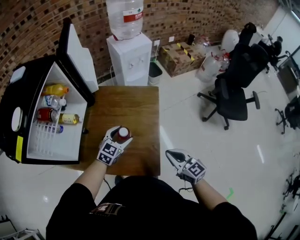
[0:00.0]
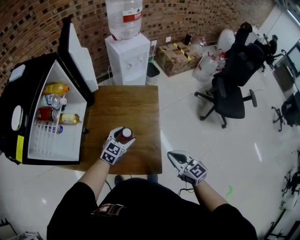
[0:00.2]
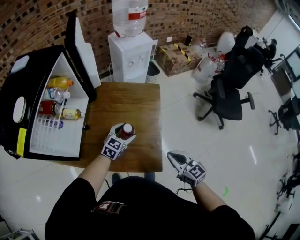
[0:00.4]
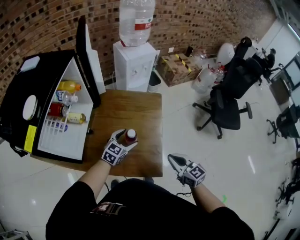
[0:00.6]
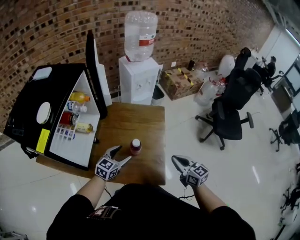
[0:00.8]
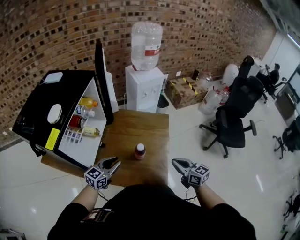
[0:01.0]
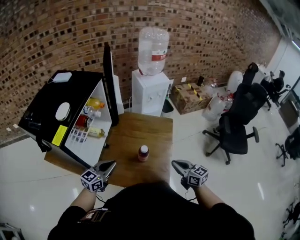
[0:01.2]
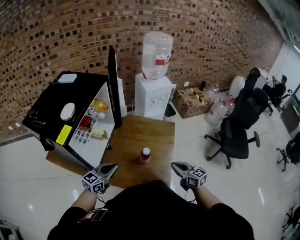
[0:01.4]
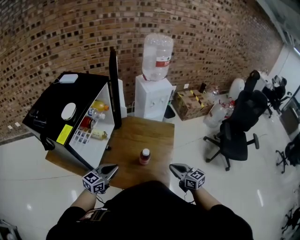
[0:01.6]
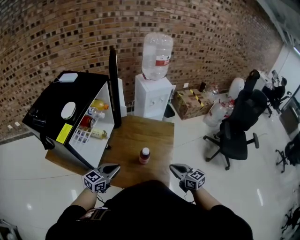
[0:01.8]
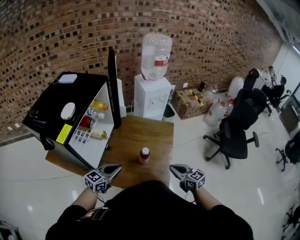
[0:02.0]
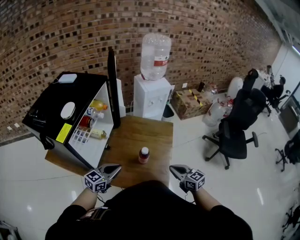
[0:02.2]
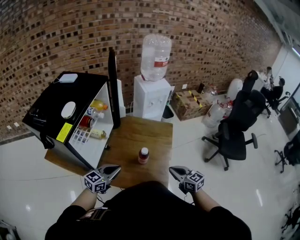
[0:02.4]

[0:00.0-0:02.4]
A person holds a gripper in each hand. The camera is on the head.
0:00.0 to 0:01.2: The left gripper shifts roughly 25 cm to the left, backward and upward, changes its angle by about 30 degrees, and closes. The right gripper is displaced to the left by approximately 5 cm.
0:01.2 to 0:02.4: There are only small adjustments of the grippers.

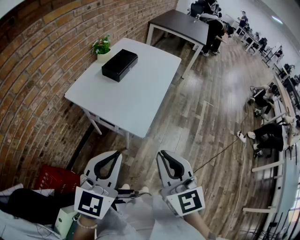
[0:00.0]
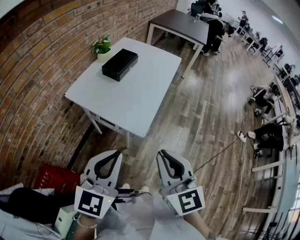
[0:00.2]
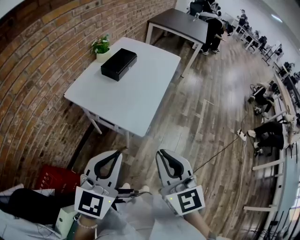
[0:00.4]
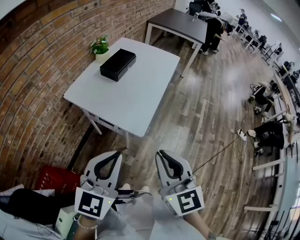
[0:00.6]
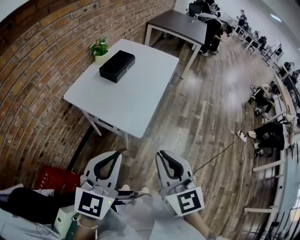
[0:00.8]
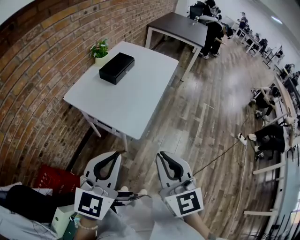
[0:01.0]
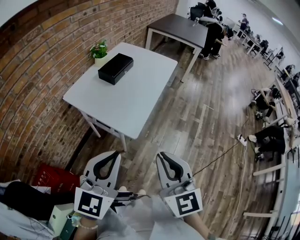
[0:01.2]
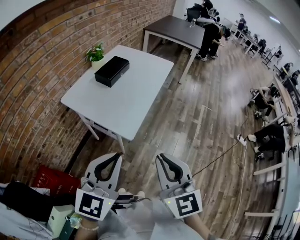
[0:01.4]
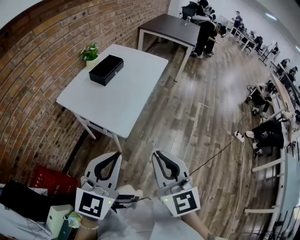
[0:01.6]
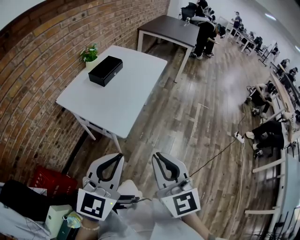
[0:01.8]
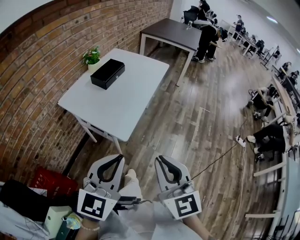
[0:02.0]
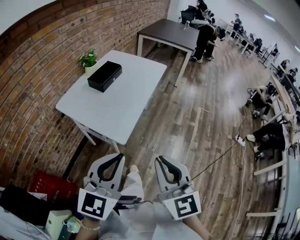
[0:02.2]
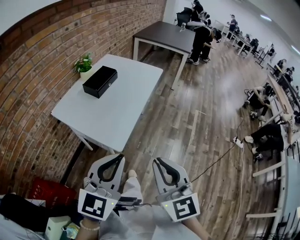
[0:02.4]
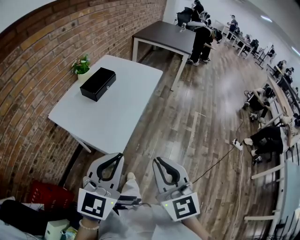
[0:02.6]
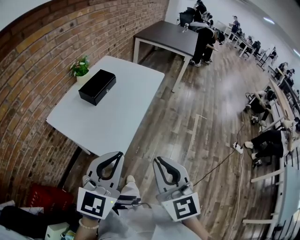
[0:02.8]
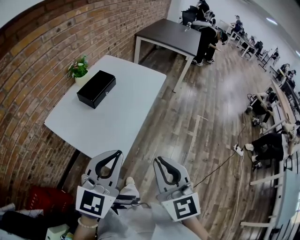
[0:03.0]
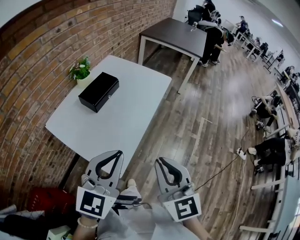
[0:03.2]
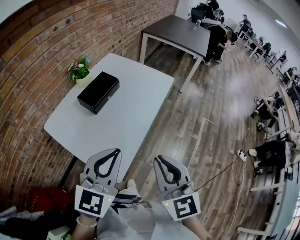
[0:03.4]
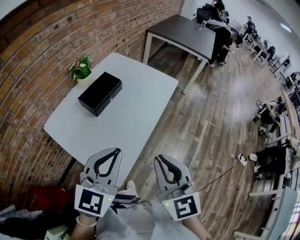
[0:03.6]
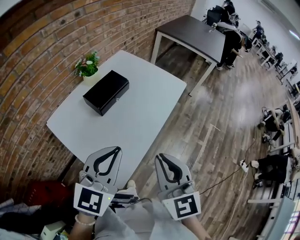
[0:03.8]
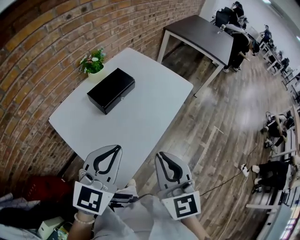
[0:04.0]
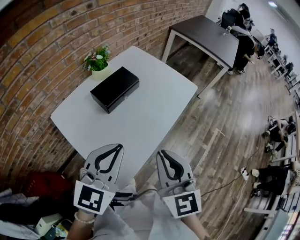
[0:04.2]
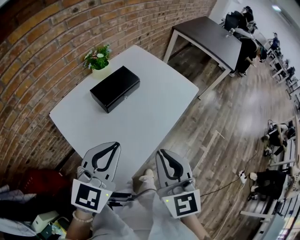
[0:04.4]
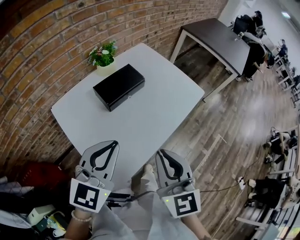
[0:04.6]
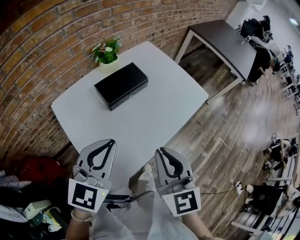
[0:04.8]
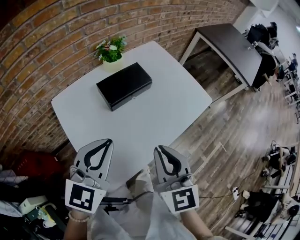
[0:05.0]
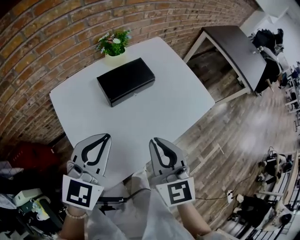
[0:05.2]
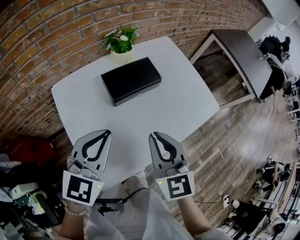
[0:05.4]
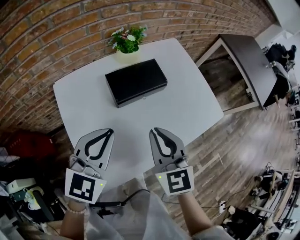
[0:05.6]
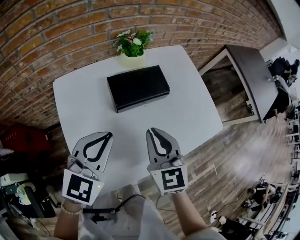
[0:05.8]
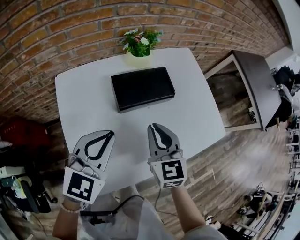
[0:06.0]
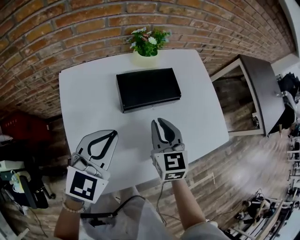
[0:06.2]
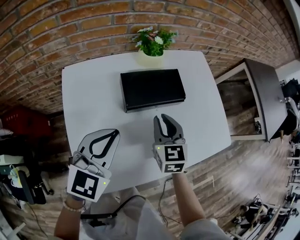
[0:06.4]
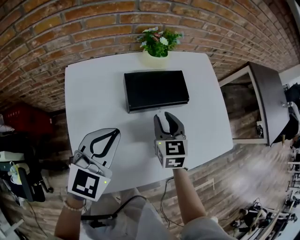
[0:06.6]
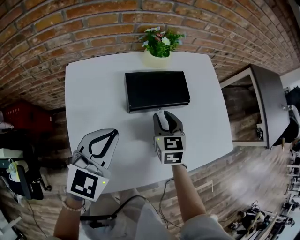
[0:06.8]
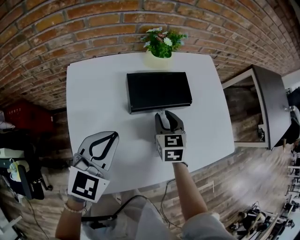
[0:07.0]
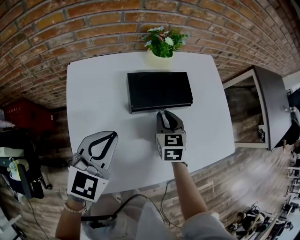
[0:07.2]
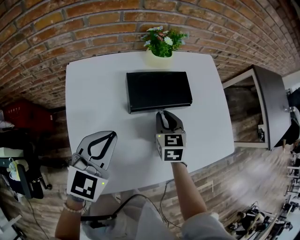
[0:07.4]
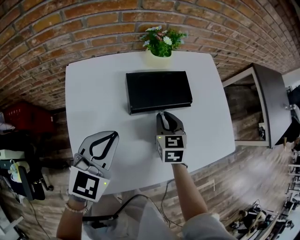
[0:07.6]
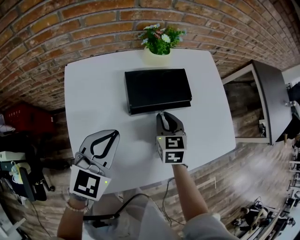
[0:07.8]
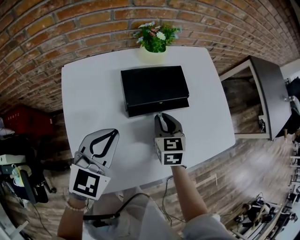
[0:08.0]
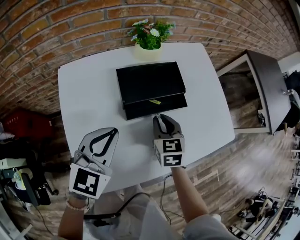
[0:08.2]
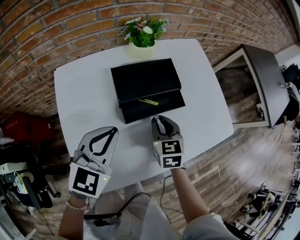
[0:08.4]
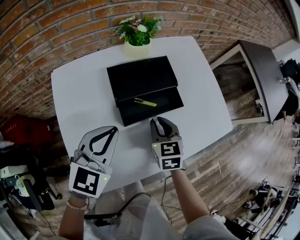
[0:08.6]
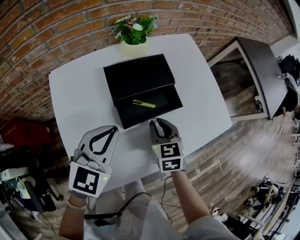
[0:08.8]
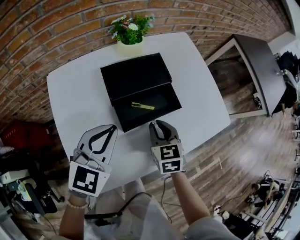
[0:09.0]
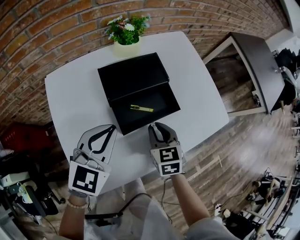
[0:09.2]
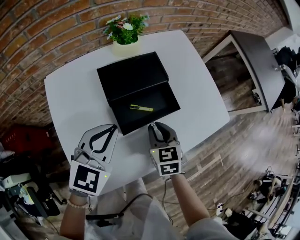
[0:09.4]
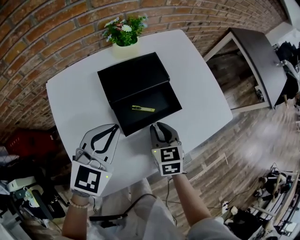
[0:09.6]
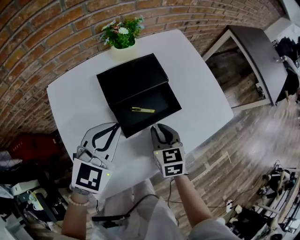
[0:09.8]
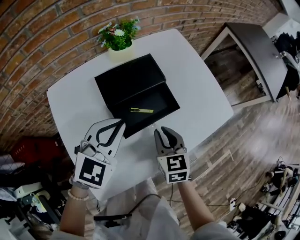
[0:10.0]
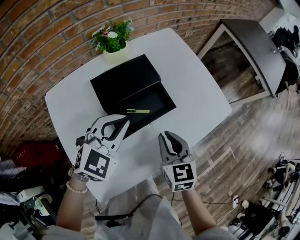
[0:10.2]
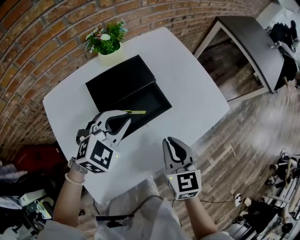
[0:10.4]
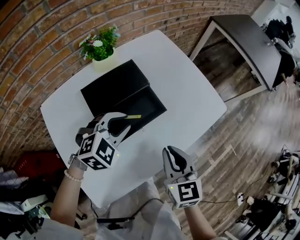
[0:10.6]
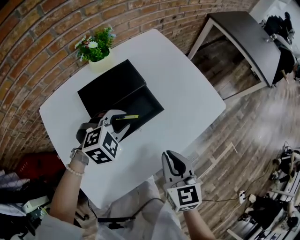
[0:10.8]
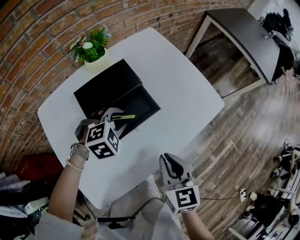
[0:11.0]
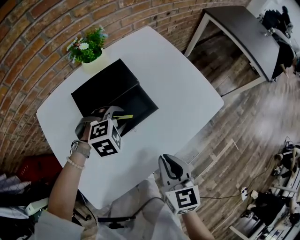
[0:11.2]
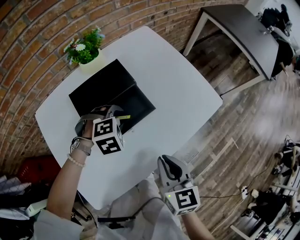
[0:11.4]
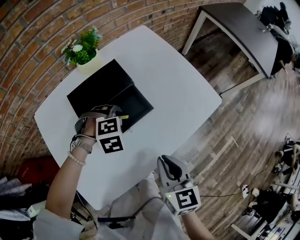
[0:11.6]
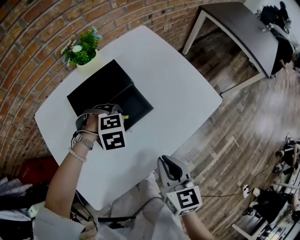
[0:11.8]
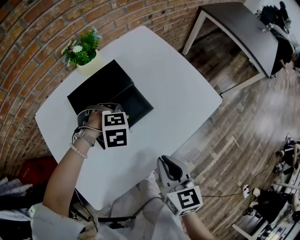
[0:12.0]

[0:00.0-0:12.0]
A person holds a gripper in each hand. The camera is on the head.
0:00.0 to 0:01.6: Both grippers travel together to the right, approximately 10 cm.
0:01.6 to 0:03.0: The grippers both shift forward by some 20 cm.
0:03.0 to 0:04.4: Both grippers travel together forward, roughly 20 cm.
0:04.4 to 0:06.0: The right gripper goes roughly 30 cm forward and downward, and changes its angle by some 30 degrees; the left gripper moves forward and downward, roughly 15 cm, and swivels some 20 degrees.
0:06.0 to 0:07.6: The right gripper shifts approximately 15 cm downward and forward; the left gripper ends up about 5 cm from where it was.
0:07.6 to 0:09.0: The left gripper heads to the right, covering roughly 5 cm; the right gripper moves backward and to the right, roughly 10 cm.
0:09.0 to 0:10.4: The left gripper heads to the right and forward, covering approximately 10 cm, and swivels about 30 degrees; the right gripper travels to the right, upward and backward by some 10 cm.
0:10.4 to 0:12.0: The right gripper changes place by roughly 5 cm, while the left gripper heads downward, covering approximately 10 cm, angles its fingers downward, by some 50 degrees, and opens its fingers.

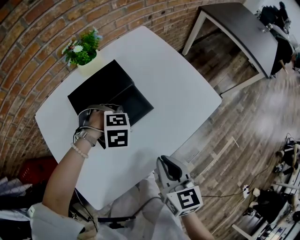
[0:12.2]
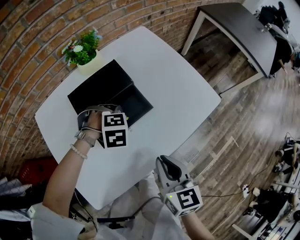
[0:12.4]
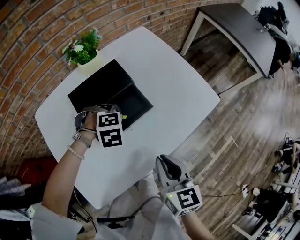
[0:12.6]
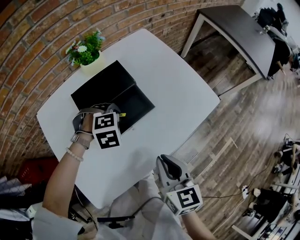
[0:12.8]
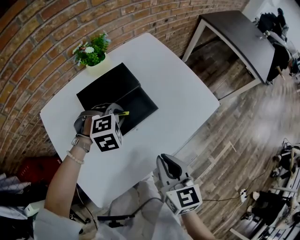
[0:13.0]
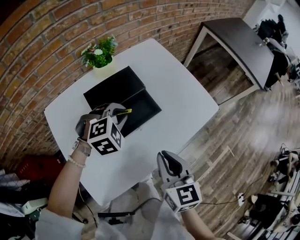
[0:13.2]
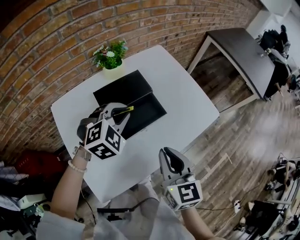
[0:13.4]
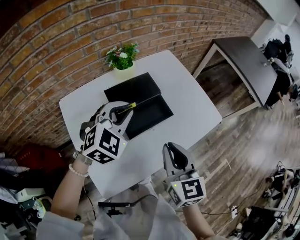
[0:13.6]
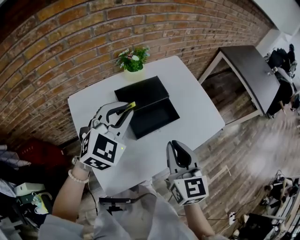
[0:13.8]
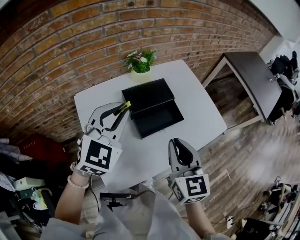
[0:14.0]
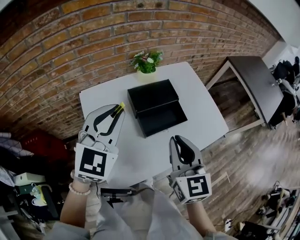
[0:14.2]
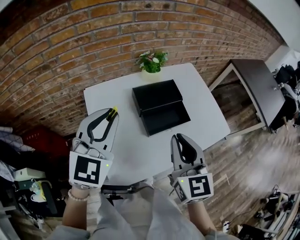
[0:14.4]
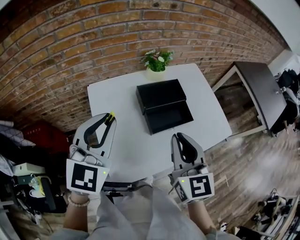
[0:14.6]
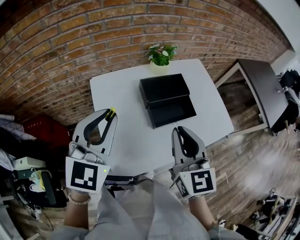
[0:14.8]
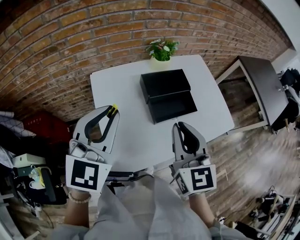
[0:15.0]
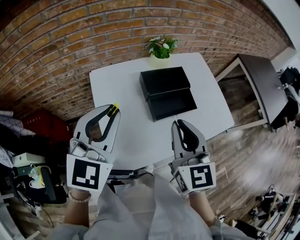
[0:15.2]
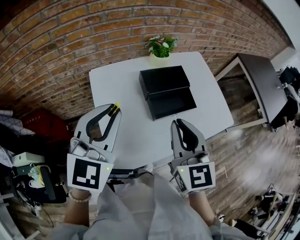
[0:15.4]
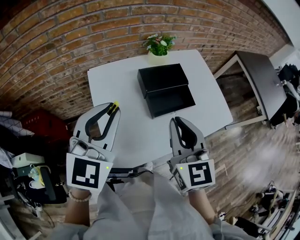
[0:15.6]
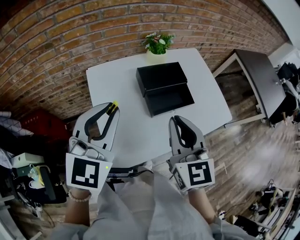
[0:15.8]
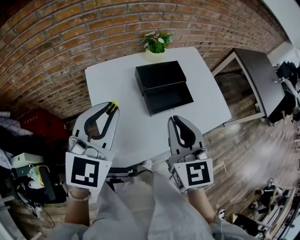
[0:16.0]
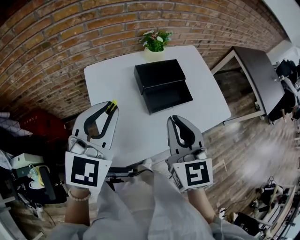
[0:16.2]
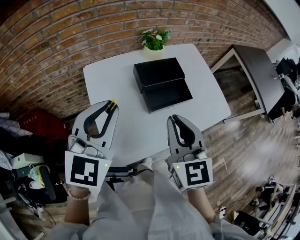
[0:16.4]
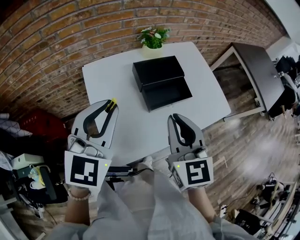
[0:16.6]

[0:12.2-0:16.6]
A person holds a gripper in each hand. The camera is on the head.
0:12.2 to 0:13.6: The left gripper is displaced upward by roughly 25 cm, and angles its fingers upward, by approximately 50 degrees. Meanwhile the right gripper heads upward, covering roughly 15 cm.
0:13.6 to 0:15.2: The right gripper is displaced to the left and upward by about 15 cm. Meanwhile the left gripper is displaced to the left, backward and upward by roughly 25 cm, and rotates approximately 30 degrees.
0:15.2 to 0:16.6: The grippers move only a little.

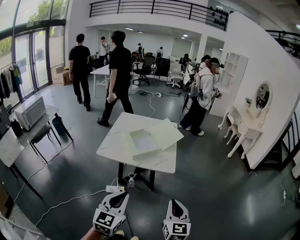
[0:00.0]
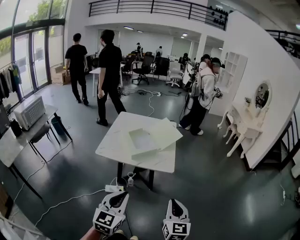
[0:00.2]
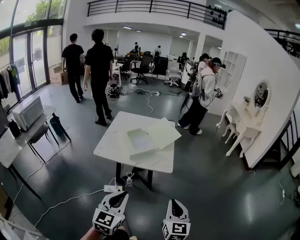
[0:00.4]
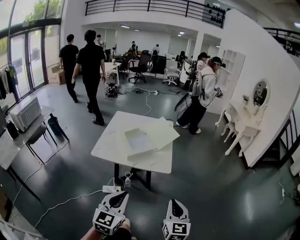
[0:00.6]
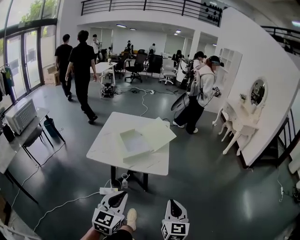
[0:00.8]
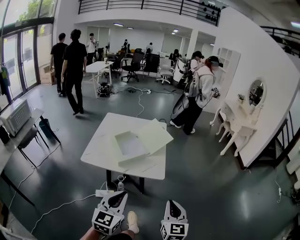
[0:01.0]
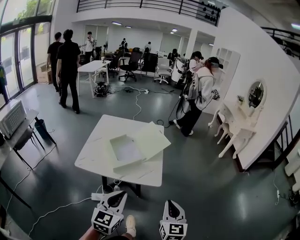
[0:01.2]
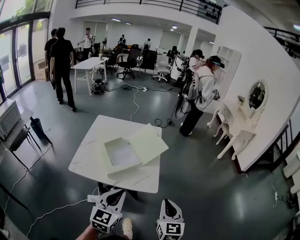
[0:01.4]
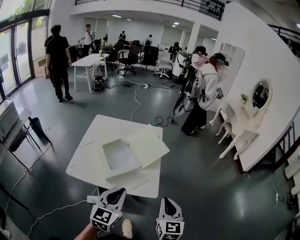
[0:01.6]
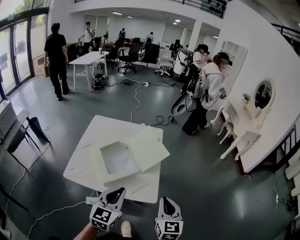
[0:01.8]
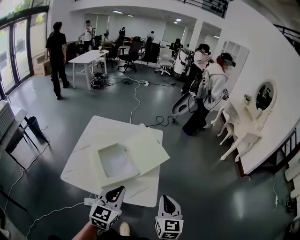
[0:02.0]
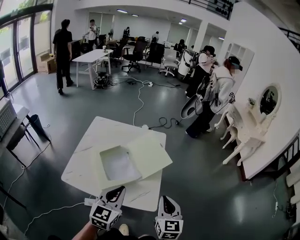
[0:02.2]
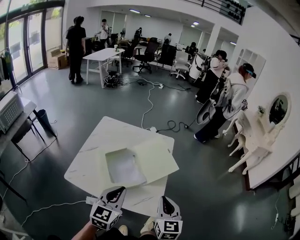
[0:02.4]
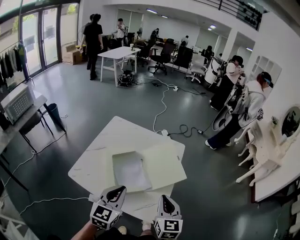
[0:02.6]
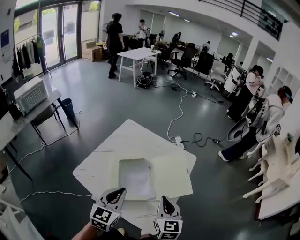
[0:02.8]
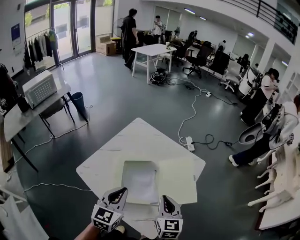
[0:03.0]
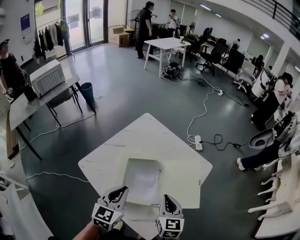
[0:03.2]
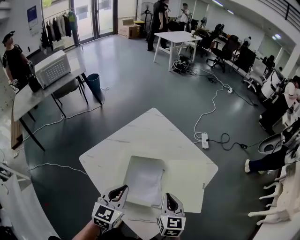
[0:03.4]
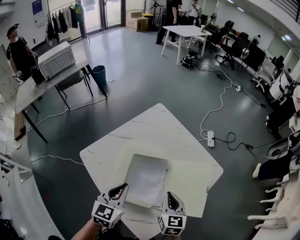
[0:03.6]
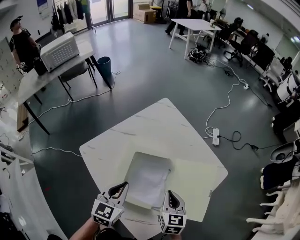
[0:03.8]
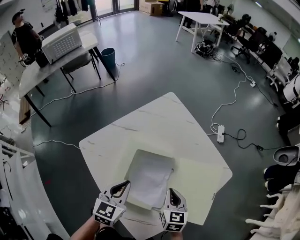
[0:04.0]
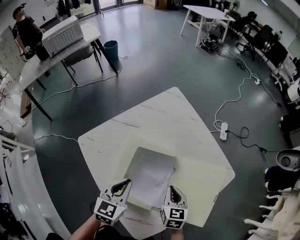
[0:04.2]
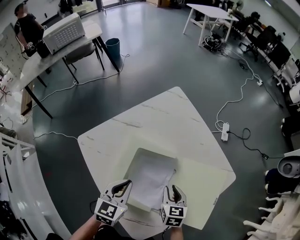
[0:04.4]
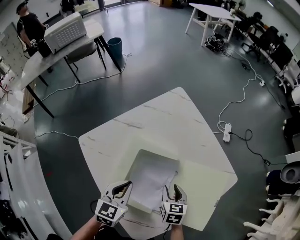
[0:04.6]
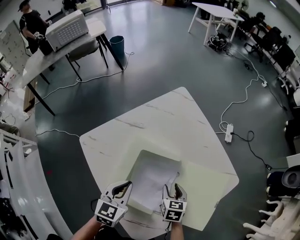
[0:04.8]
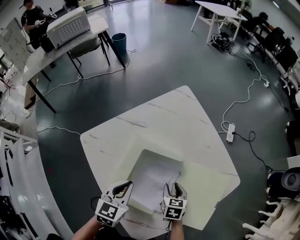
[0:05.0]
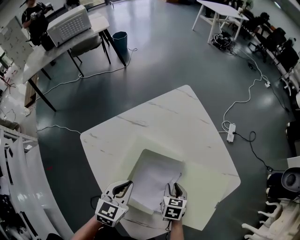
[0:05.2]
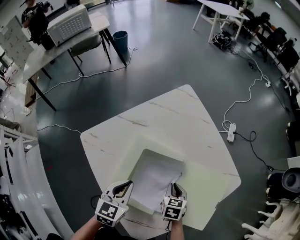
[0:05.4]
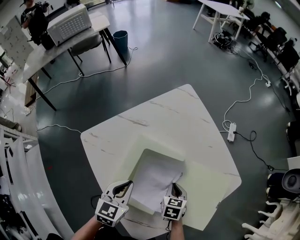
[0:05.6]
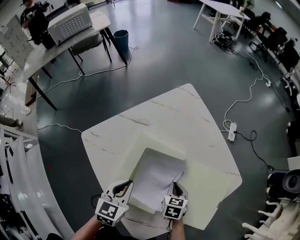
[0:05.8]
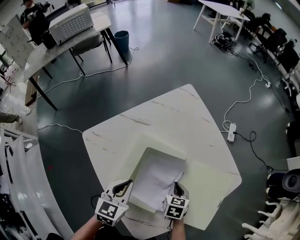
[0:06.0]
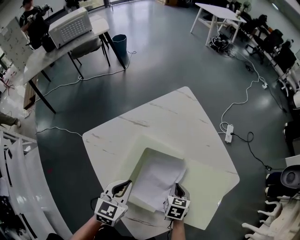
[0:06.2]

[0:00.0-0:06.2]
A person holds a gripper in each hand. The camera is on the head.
0:00.0 to 0:01.6: The two grippers go approximately 35 cm forward.
0:01.6 to 0:03.2: The left gripper changes place by approximately 35 cm, and turns by some 40 degrees; the right gripper moves about 40 cm, and rotates some 40 degrees.
0:03.2 to 0:04.6: The two grippers go approximately 25 cm downward and forward. The right gripper swivels roughly 30 degrees, and opens up.
0:04.6 to 0:06.2: The right gripper closes its fingers.
